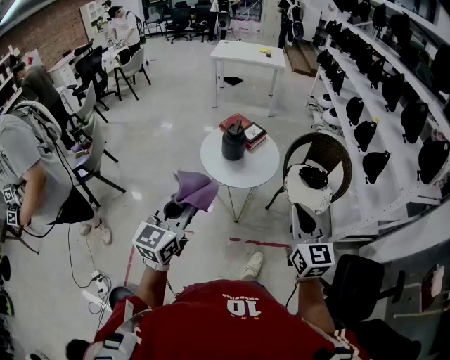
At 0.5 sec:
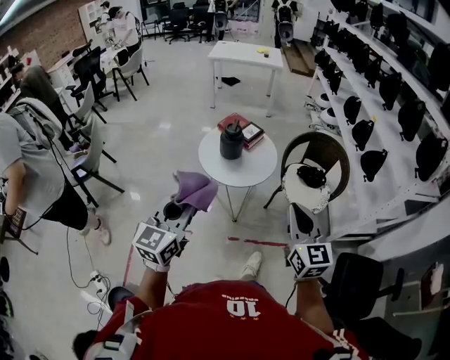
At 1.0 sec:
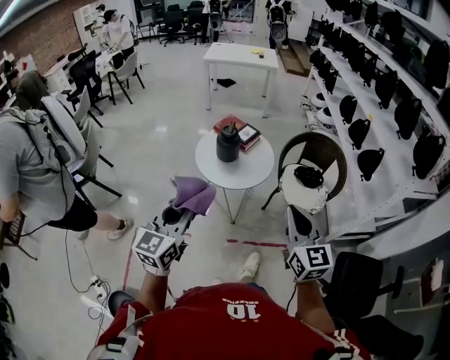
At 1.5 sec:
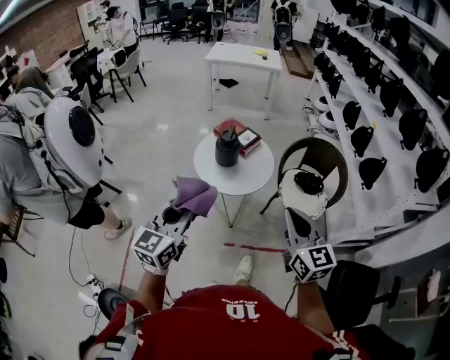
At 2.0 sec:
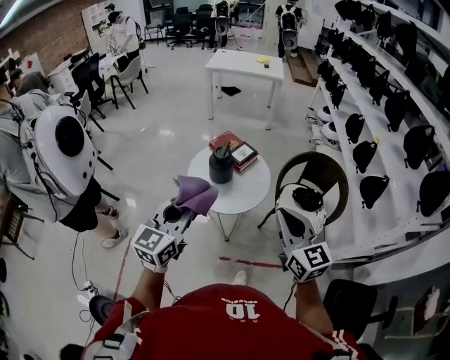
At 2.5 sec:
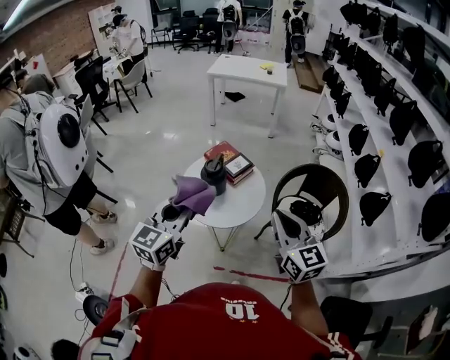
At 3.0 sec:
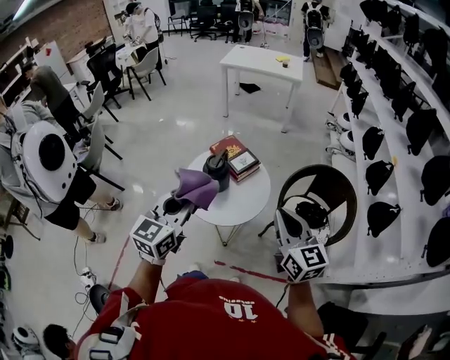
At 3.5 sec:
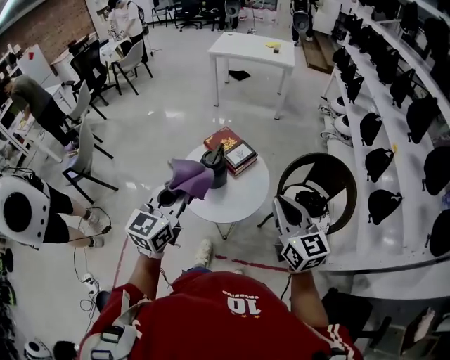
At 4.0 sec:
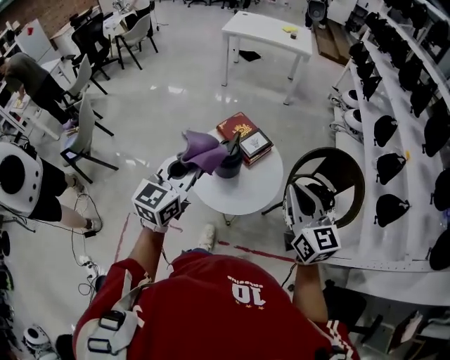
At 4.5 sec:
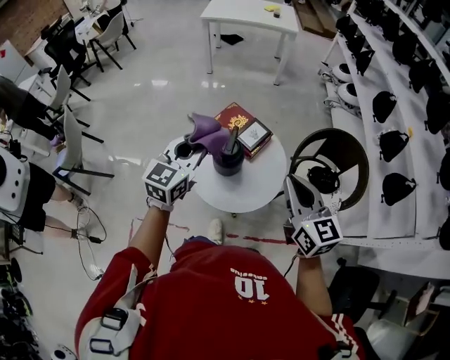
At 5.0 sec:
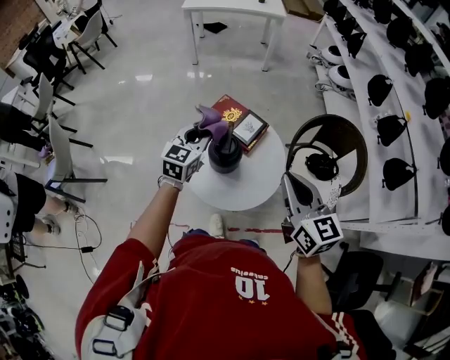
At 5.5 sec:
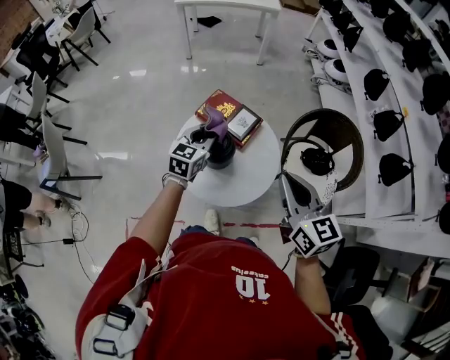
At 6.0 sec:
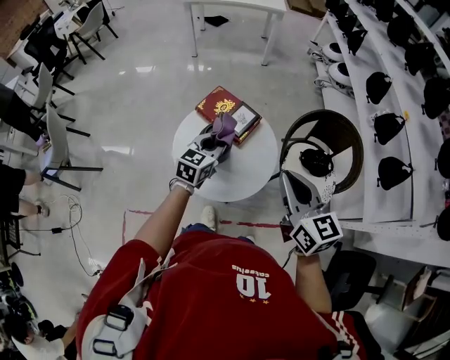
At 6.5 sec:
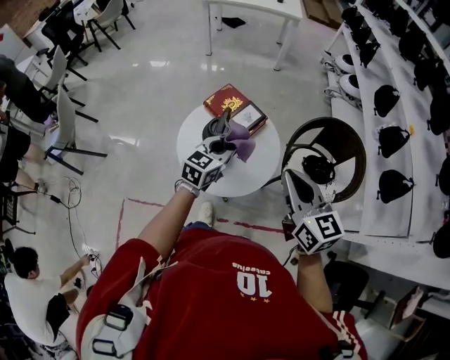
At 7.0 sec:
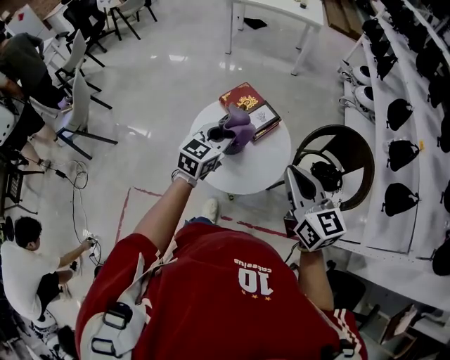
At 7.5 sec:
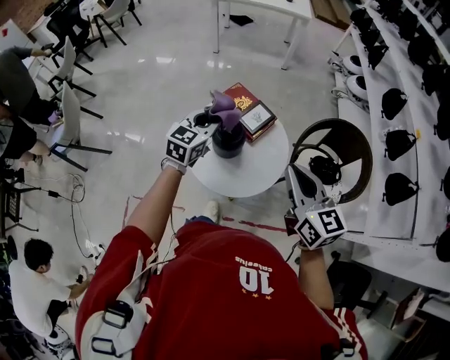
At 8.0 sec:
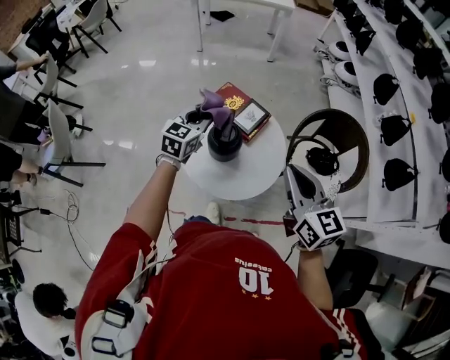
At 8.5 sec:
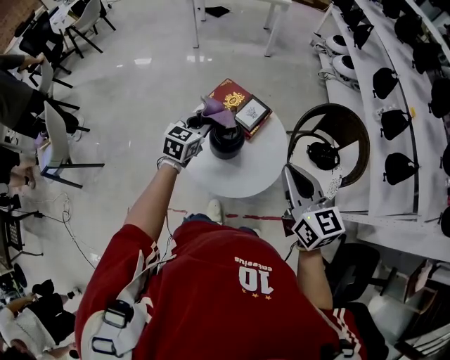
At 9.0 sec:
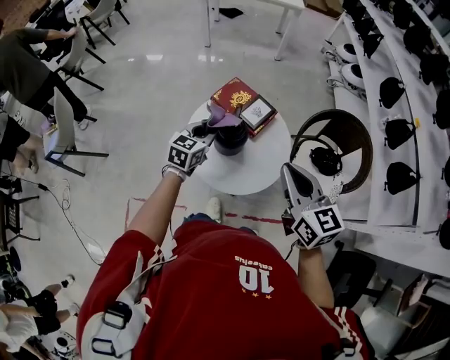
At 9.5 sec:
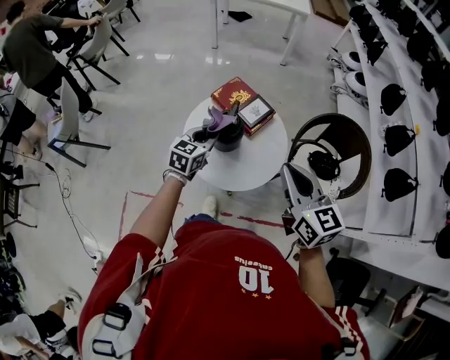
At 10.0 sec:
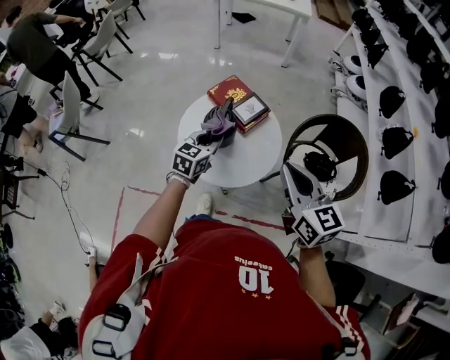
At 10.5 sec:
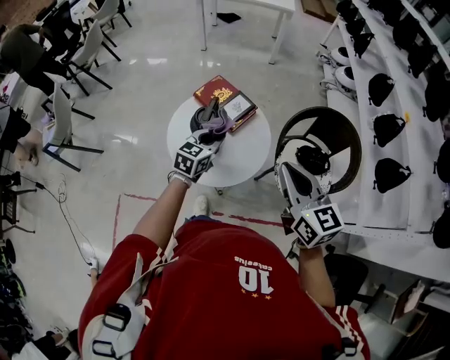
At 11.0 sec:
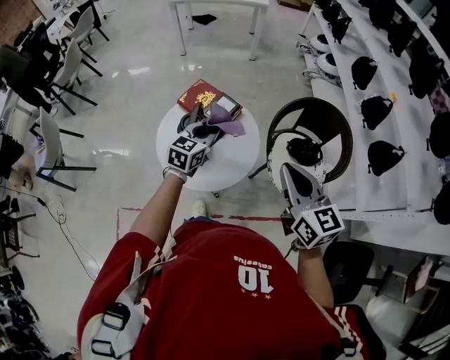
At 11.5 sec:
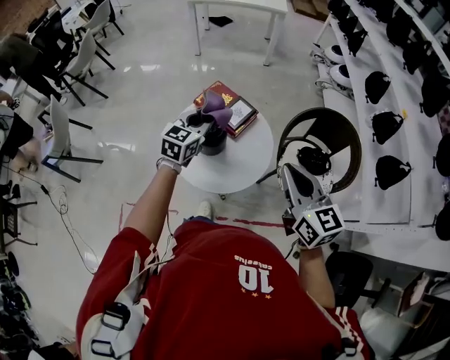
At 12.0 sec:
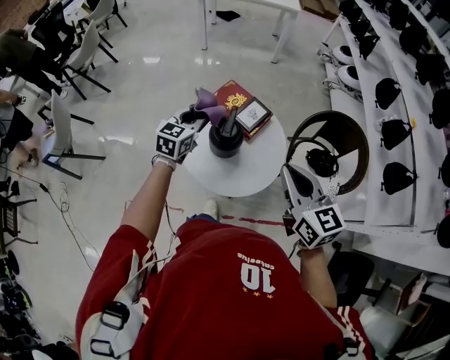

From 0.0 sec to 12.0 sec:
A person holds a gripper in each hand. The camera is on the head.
From 0.0 sec to 2.0 sec: The right gripper moves forward, roughly 10 cm. The left gripper shifts some 15 cm forward and to the right.
From 2.0 sec to 4.0 sec: The grippers both shift forward by some 20 cm.
From 4.0 sec to 6.0 sec: The right gripper shifts about 5 cm downward, while the left gripper heads downward and forward, covering some 25 cm, and turns by approximately 20 degrees.
From 6.0 sec to 8.0 sec: The left gripper travels to the left and forward by some 10 cm.
From 8.0 sec to 10.0 sec: The right gripper ends up roughly 5 cm from where it was, while the left gripper shifts some 15 cm backward, to the right and downward.
From 10.0 sec to 12.0 sec: The left gripper moves to the left, forward and upward, roughly 15 cm, while the right gripper is displaced to the left by approximately 5 cm.

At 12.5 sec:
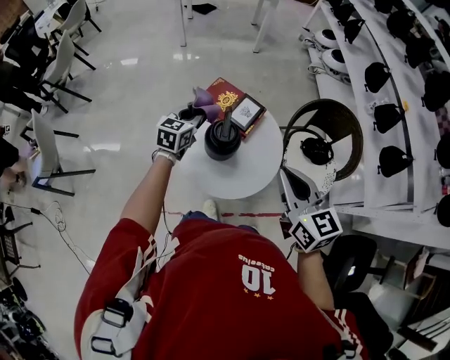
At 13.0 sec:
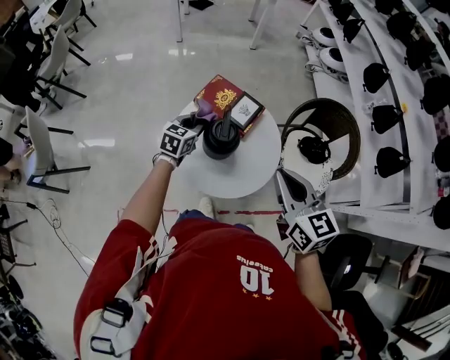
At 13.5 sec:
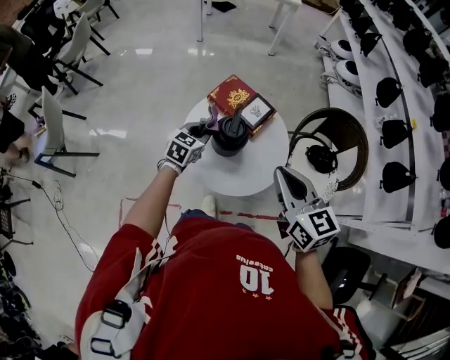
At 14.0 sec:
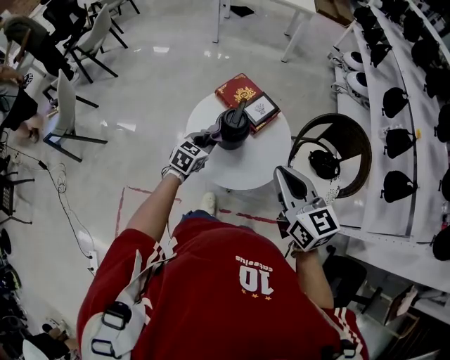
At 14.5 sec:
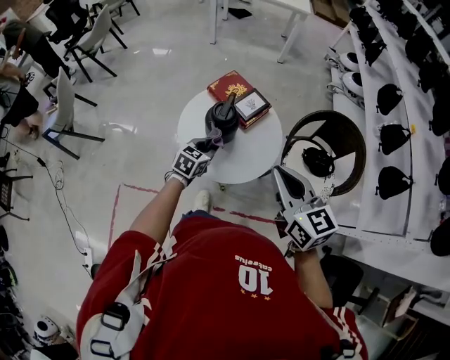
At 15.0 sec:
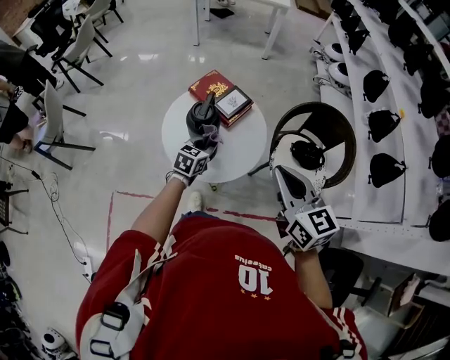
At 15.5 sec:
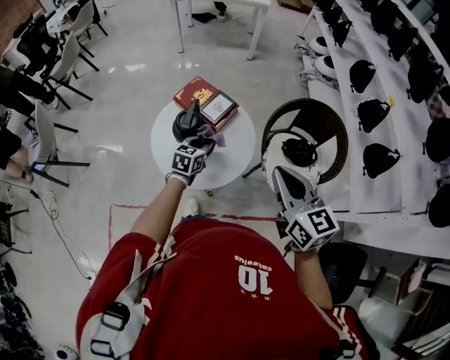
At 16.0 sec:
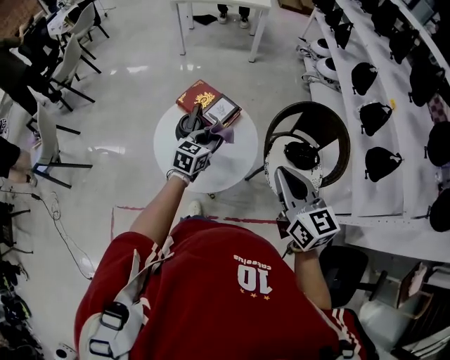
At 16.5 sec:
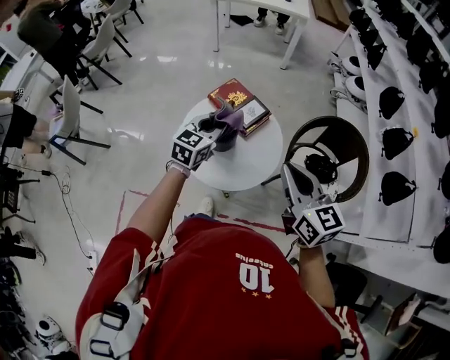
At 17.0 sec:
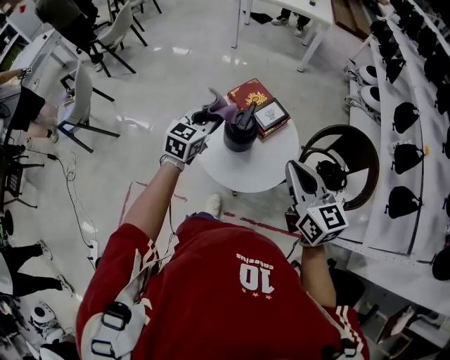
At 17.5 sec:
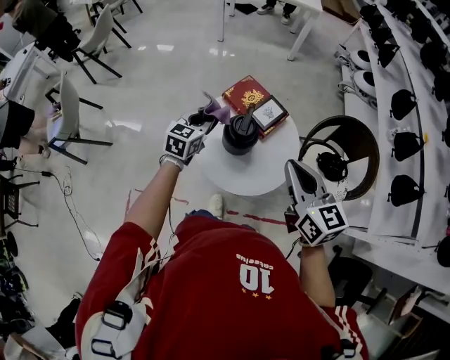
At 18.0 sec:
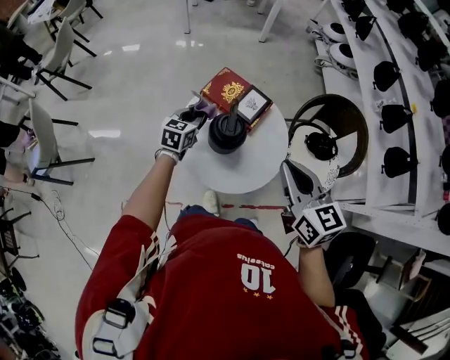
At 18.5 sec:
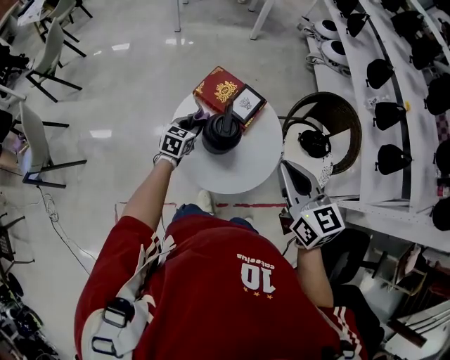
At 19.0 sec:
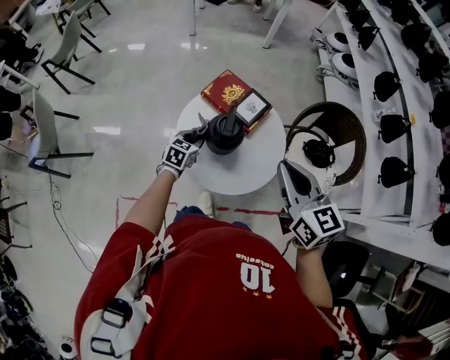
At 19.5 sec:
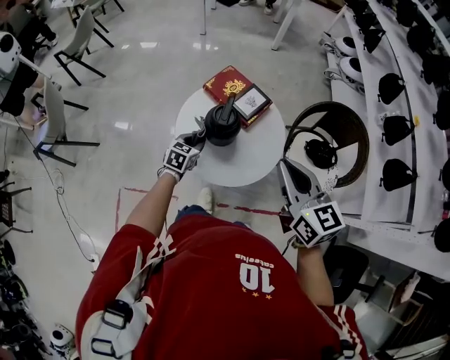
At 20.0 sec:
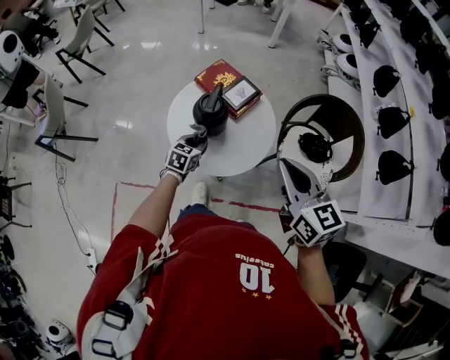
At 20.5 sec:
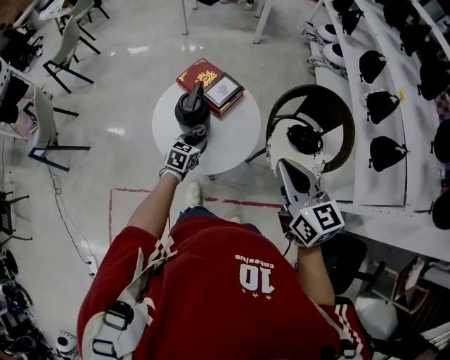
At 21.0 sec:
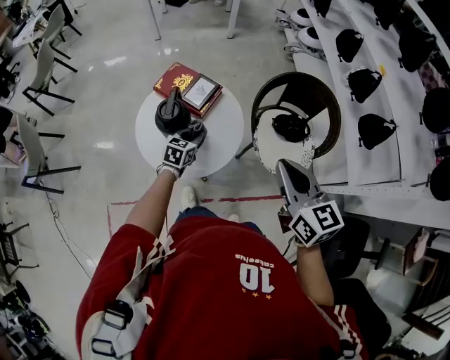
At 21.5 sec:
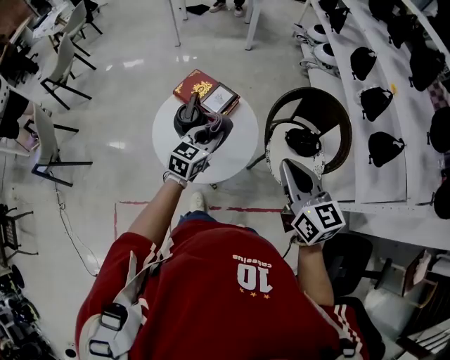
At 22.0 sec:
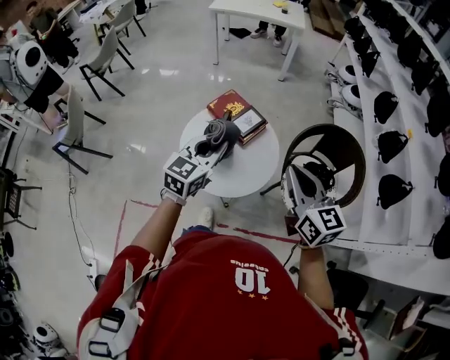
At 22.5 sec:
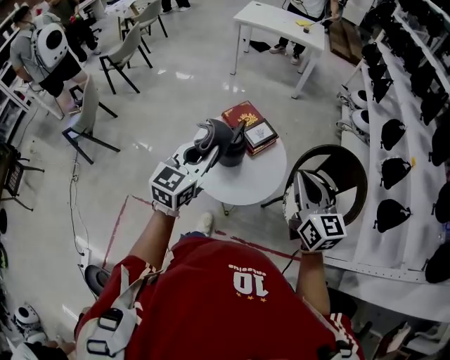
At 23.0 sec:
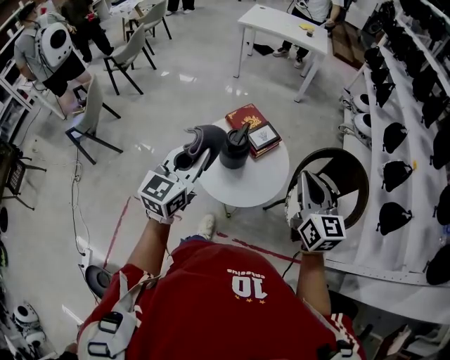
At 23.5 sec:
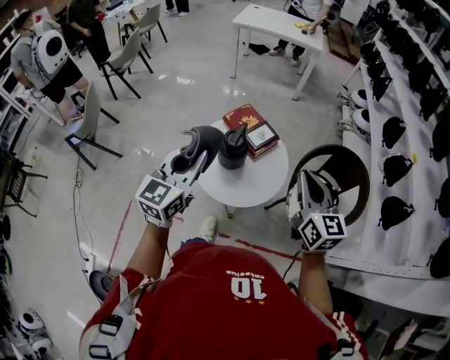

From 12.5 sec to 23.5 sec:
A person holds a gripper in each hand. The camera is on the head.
From 12.5 sec to 14.5 sec: The right gripper travels backward by roughly 5 cm. The left gripper moves backward, to the right and downward, about 20 cm.
From 14.5 sec to 16.0 sec: The right gripper heads to the right, covering approximately 10 cm; the left gripper is displaced to the right, forward and upward by some 15 cm.
From 16.0 sec to 18.0 sec: The grippers both shift to the left and forward by some 20 cm.
From 18.0 sec to 20.0 sec: The right gripper travels to the right and backward by some 10 cm, while the left gripper goes roughly 20 cm backward and to the right.
From 20.0 sec to 21.5 sec: The right gripper travels to the right by approximately 10 cm. Meanwhile the left gripper is displaced upward and to the right by approximately 20 cm, and changes its angle by approximately 20 degrees.
From 21.5 sec to 23.5 sec: The right gripper moves about 10 cm, while the left gripper shifts roughly 30 cm upward, to the left and backward, and rotates roughly 30 degrees.

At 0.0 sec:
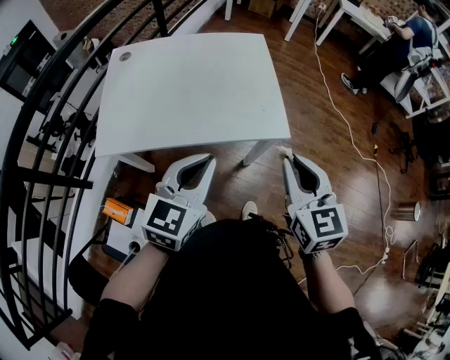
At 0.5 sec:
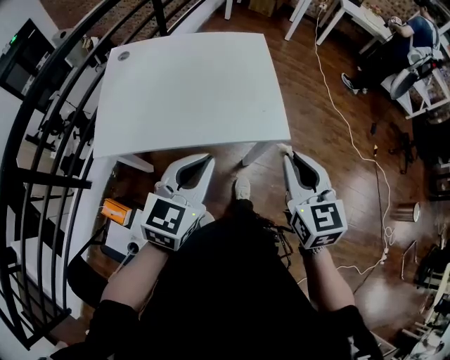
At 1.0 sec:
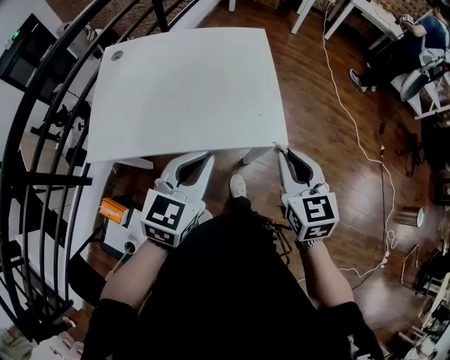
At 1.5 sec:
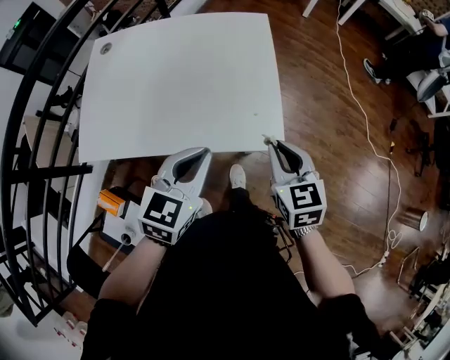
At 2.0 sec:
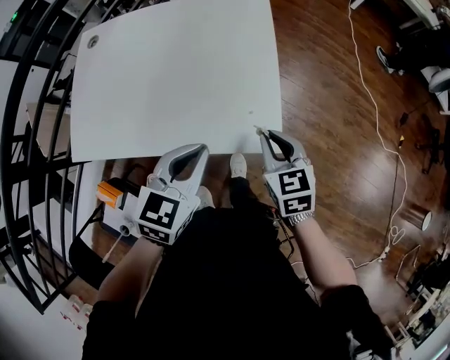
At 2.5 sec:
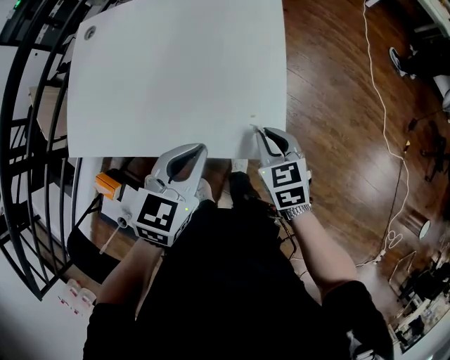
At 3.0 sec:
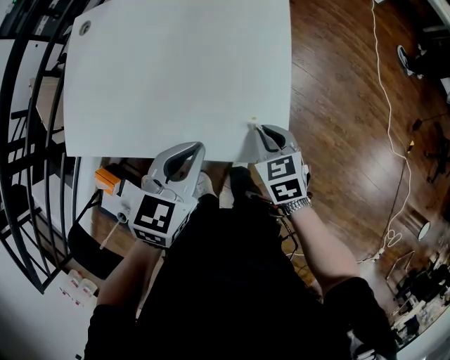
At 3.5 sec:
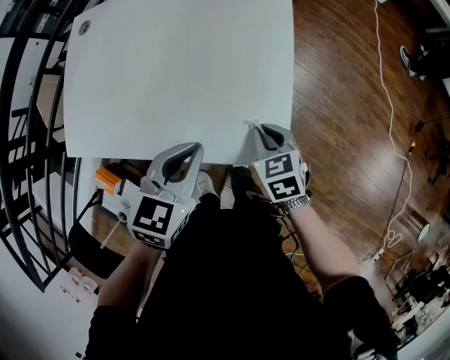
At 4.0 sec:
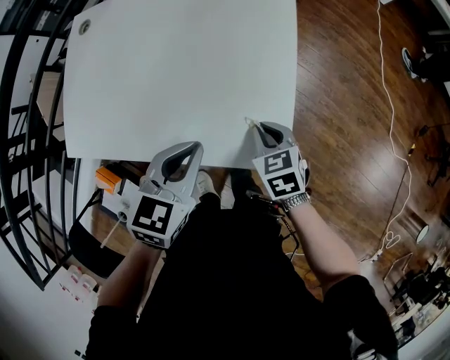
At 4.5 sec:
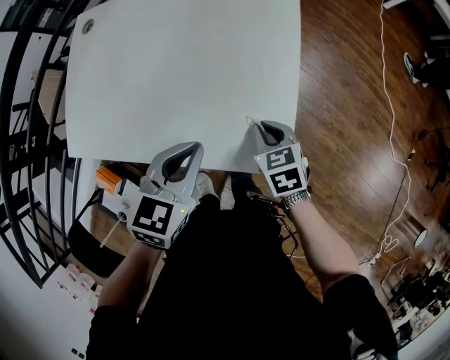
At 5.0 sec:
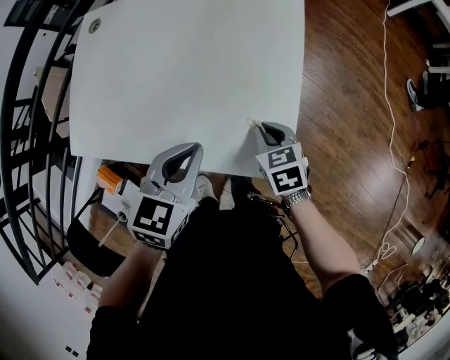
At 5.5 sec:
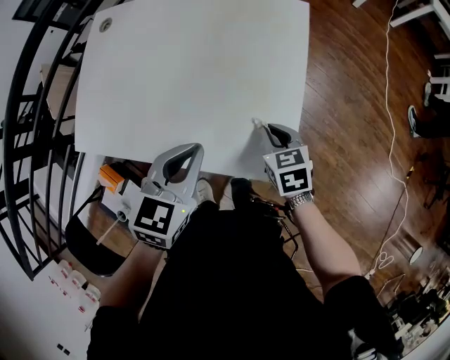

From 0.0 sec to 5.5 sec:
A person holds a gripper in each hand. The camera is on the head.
From 0.0 sec to 2.0 sec: The right gripper moves downward and forward, some 25 cm, and turns by roughly 20 degrees, while the left gripper is displaced forward, downward and to the right by roughly 20 cm.
From 2.0 sec to 3.5 sec: The left gripper goes roughly 5 cm downward. Meanwhile the right gripper goes approximately 10 cm downward.
From 3.5 sec to 5.5 sec: The grippers stay close to where they were, moving slightly.
